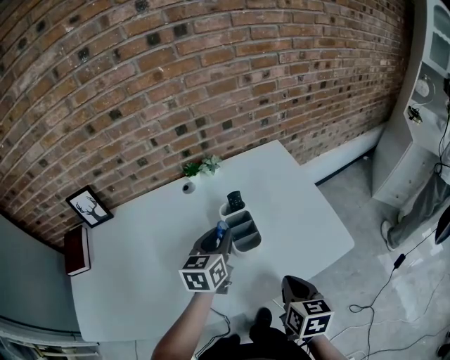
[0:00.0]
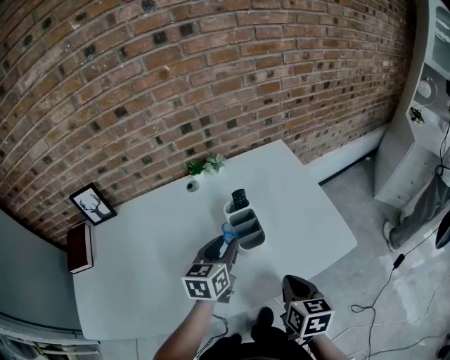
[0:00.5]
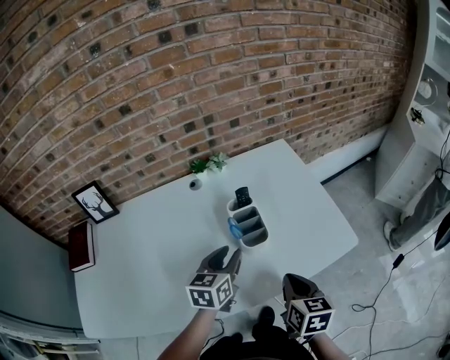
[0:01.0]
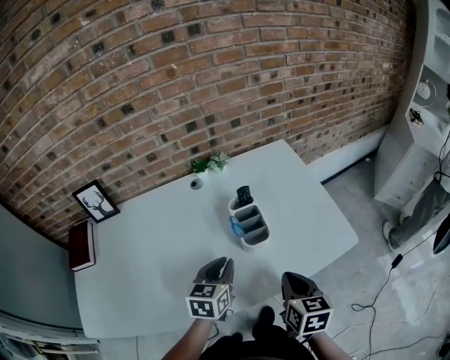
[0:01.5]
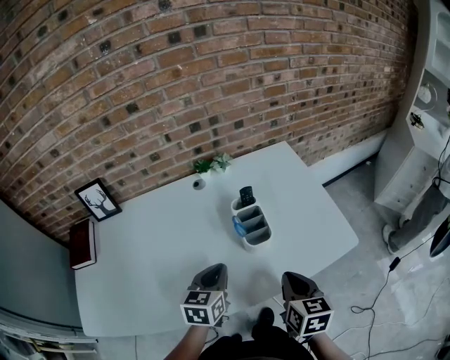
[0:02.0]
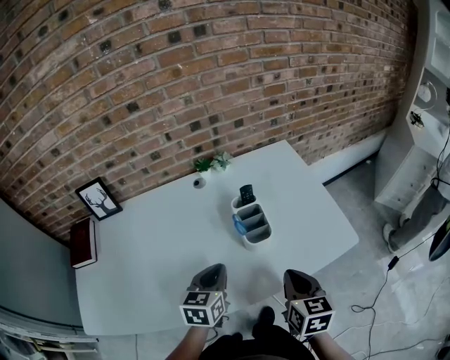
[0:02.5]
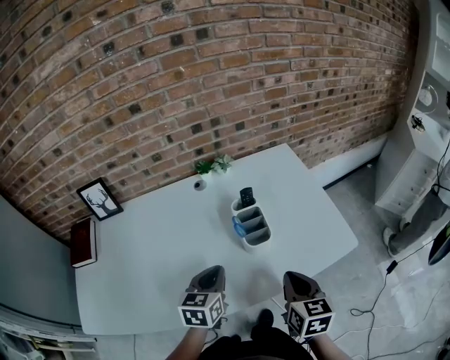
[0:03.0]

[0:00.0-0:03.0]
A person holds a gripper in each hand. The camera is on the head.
0:00.0 to 0:01.5: The left gripper travels backward by approximately 10 cm.
0:01.5 to 0:03.0: The grippers stay close to where they were, moving slightly.

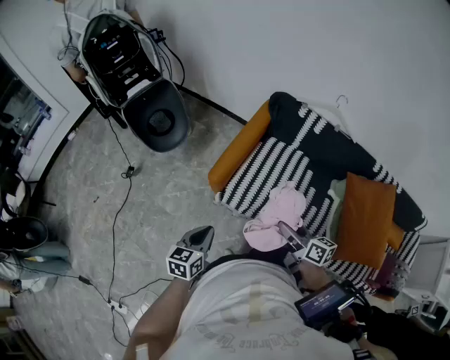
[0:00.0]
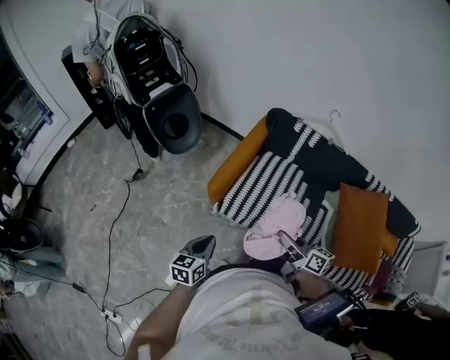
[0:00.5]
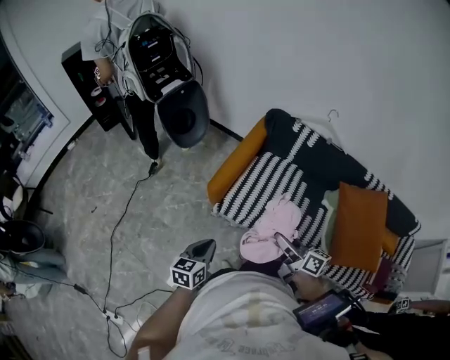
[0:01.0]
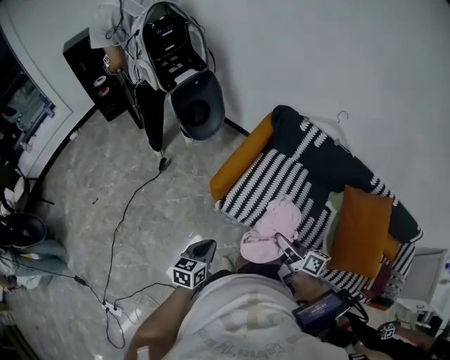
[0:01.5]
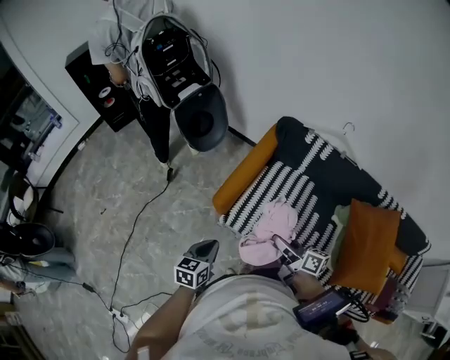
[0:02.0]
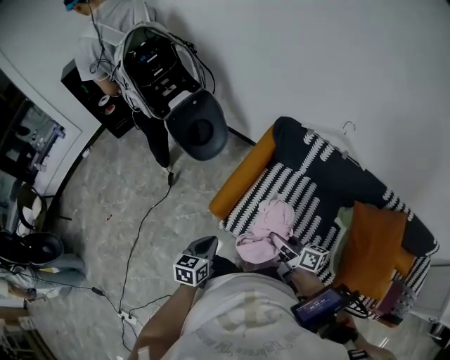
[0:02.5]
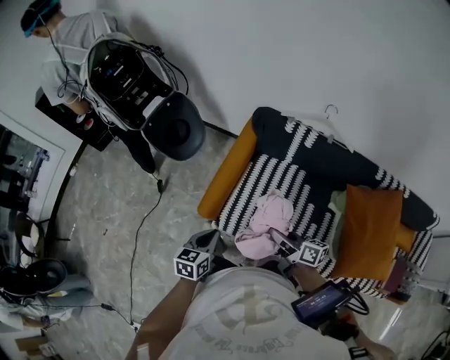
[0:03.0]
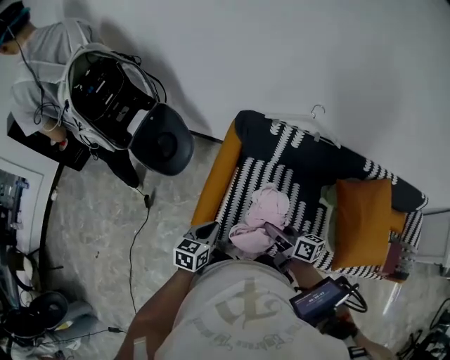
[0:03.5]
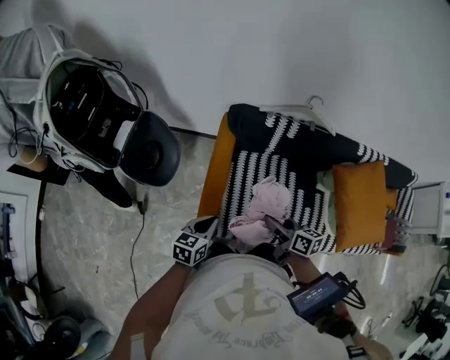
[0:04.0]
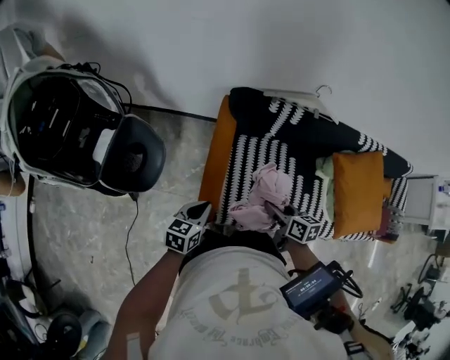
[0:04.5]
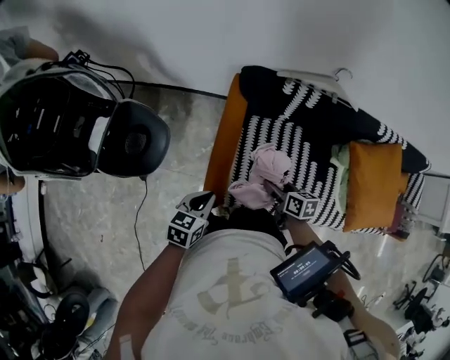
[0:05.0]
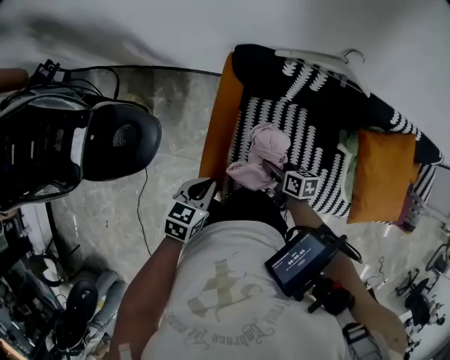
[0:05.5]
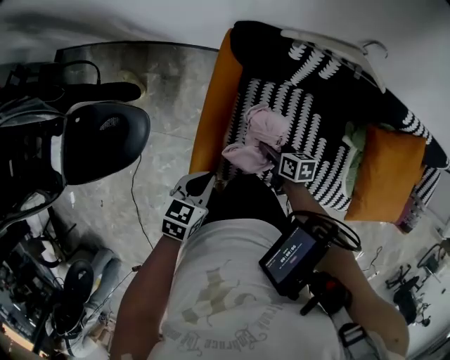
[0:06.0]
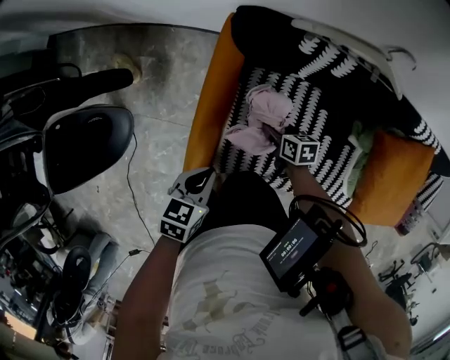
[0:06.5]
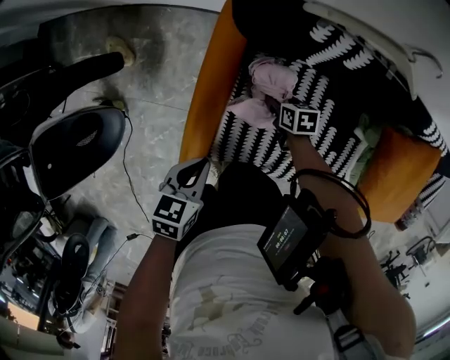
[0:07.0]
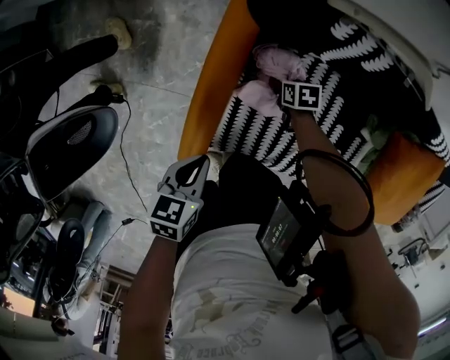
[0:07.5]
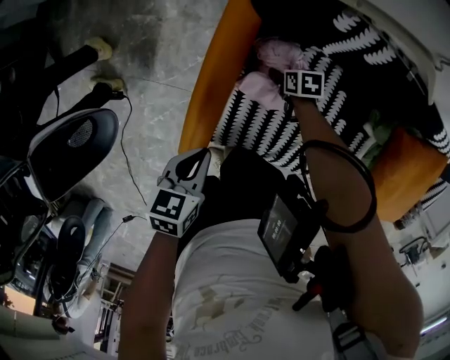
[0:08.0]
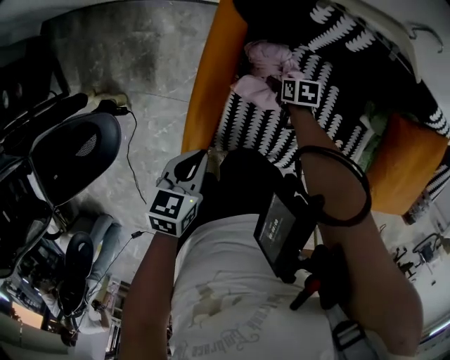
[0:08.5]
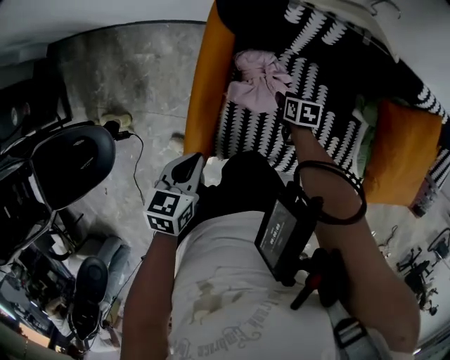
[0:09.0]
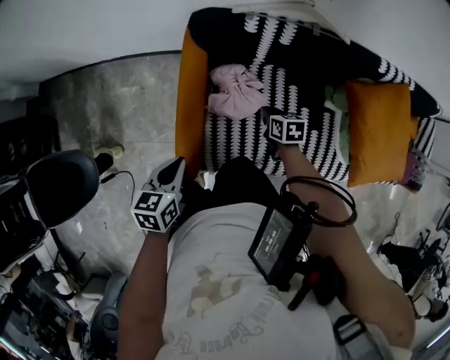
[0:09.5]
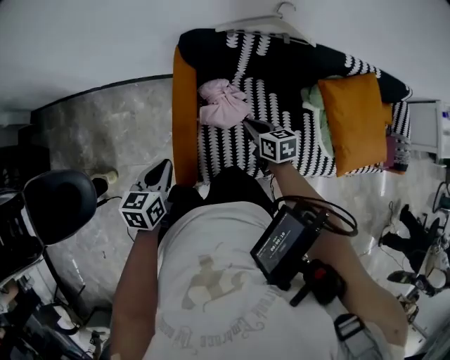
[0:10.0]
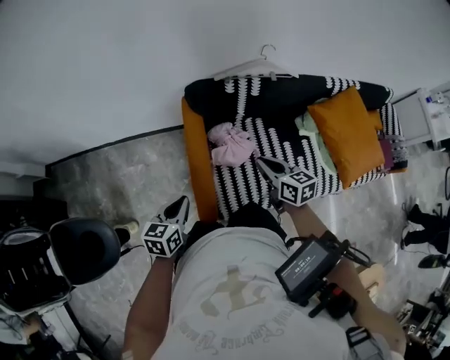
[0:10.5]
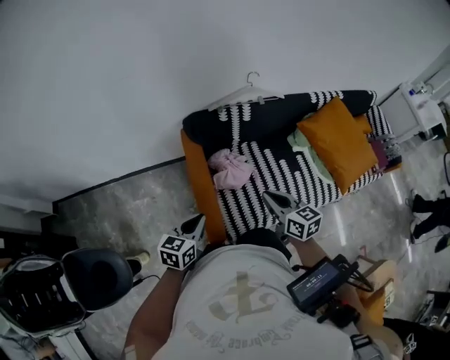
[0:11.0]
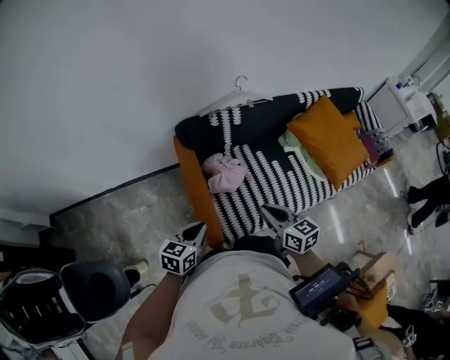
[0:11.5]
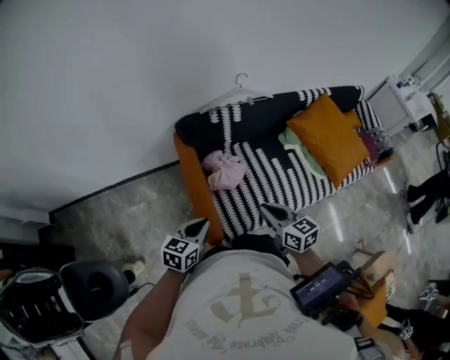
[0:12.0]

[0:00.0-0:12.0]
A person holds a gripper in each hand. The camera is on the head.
0:00.0 to 0:02.0: The right gripper goes backward and returns, roughly 10 cm each way. Meanwhile the left gripper moves some 10 cm backward and comes back.
0:02.0 to 0:04.0: The left gripper ends up roughly 25 cm from where it was, and swivels roughly 30 degrees. The right gripper ends up roughly 15 cm from where it was, and changes its angle by approximately 30 degrees.
0:04.0 to 0:06.0: The right gripper heads downward and forward, covering some 30 cm, and swivels approximately 30 degrees. Meanwhile the left gripper goes roughly 15 cm forward and downward.
0:06.0 to 0:08.0: The right gripper travels downward and forward by roughly 20 cm, and swivels about 20 degrees.
0:08.0 to 0:10.0: The right gripper shifts about 35 cm upward and backward, swivels about 40 degrees, and closes its fingers. Meanwhile the left gripper shifts approximately 10 cm upward and to the left, and changes its angle by some 20 degrees.
0:10.0 to 0:12.0: The right gripper is displaced backward and upward by approximately 20 cm, and rotates roughly 20 degrees. The left gripper changes place by roughly 5 cm, and rotates approximately 30 degrees.

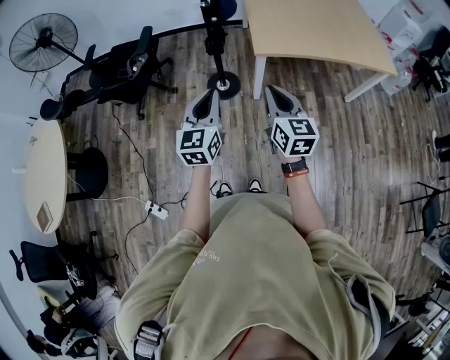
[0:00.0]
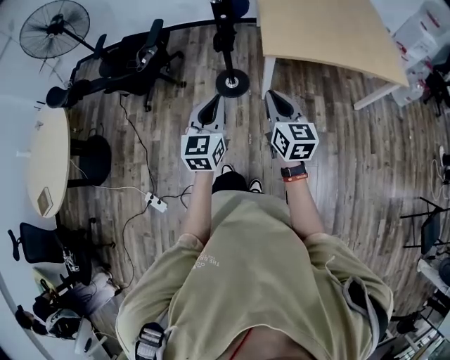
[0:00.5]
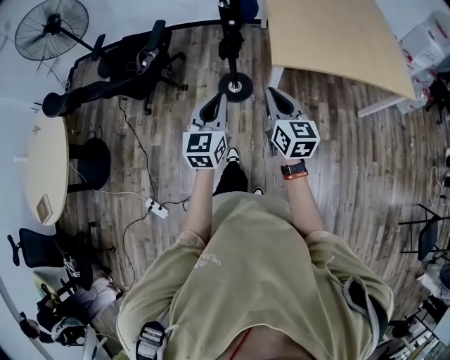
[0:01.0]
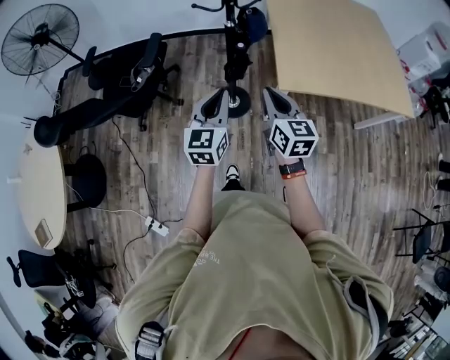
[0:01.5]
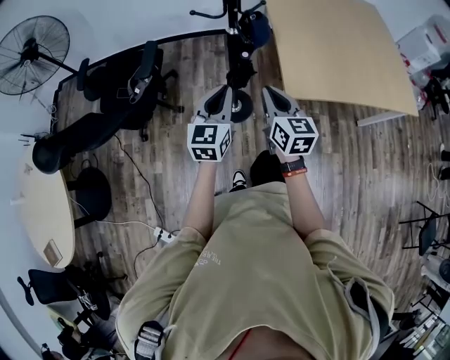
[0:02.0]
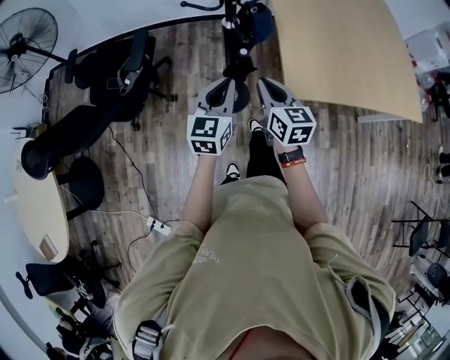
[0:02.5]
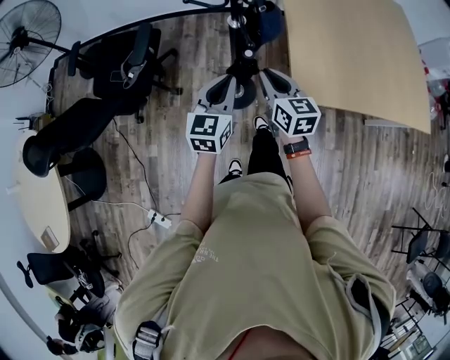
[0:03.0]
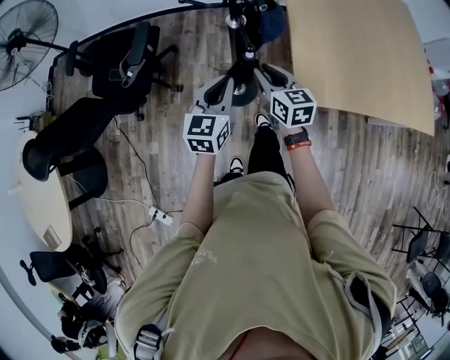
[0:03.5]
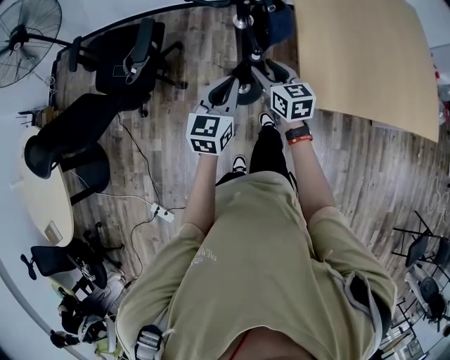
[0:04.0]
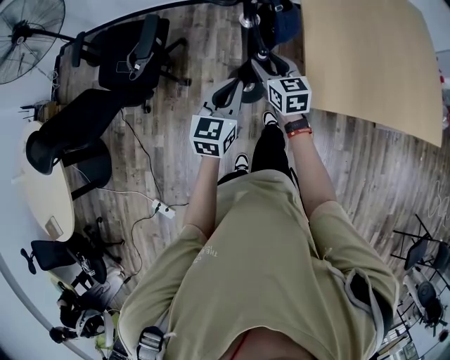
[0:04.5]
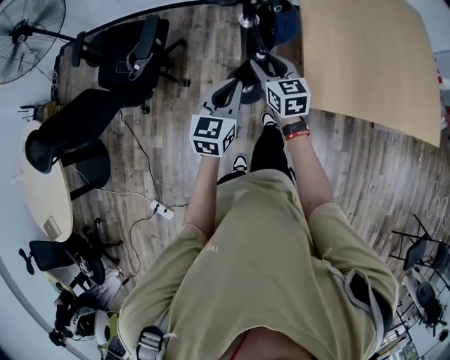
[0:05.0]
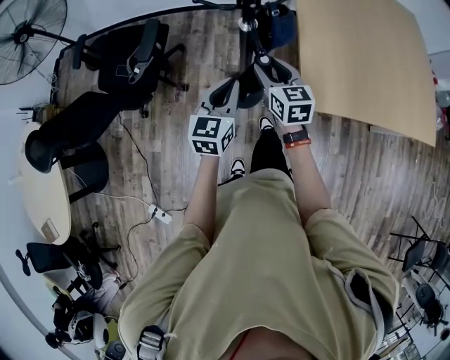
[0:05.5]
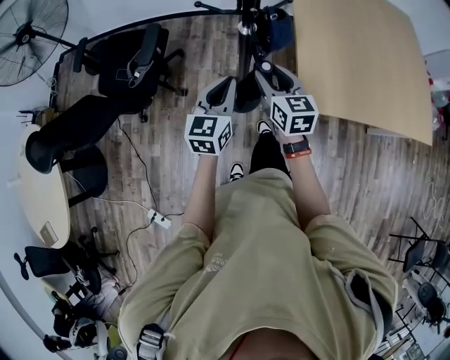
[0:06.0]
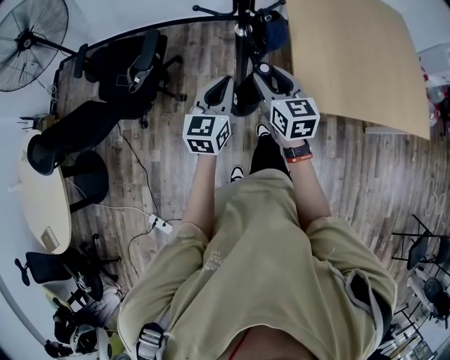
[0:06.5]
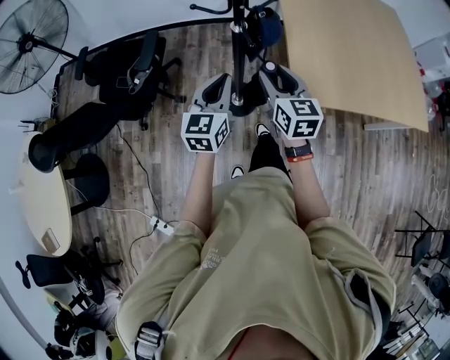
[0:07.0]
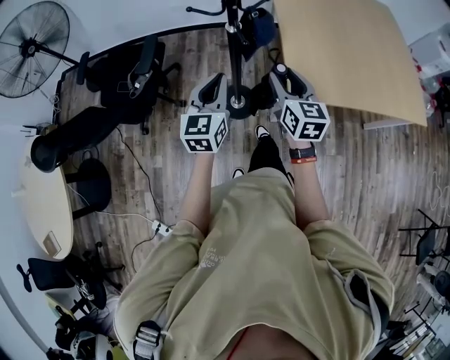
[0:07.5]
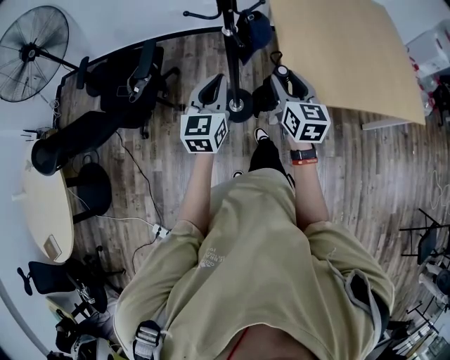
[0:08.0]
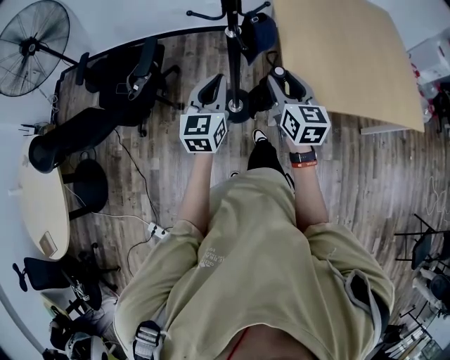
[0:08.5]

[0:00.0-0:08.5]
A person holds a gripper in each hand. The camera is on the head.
0:00.0 to 0:02.0: The grippers both shift forward by some 35 cm.
0:02.0 to 0:04.0: Both grippers travel together forward and downward, about 20 cm. The right gripper opens.
0:04.0 to 0:06.5: The right gripper travels upward and backward by roughly 15 cm. The left gripper goes approximately 5 cm upward.
0:06.5 to 0:08.5: The right gripper goes about 10 cm to the right and backward; the left gripper shifts by about 5 cm.

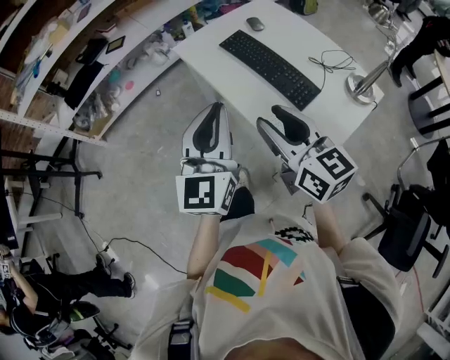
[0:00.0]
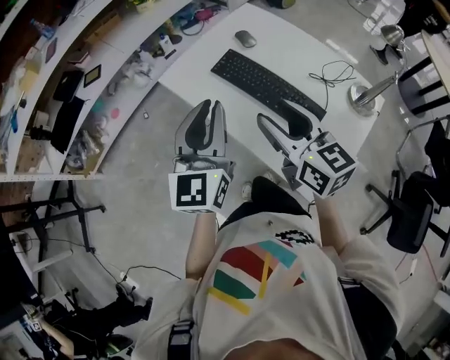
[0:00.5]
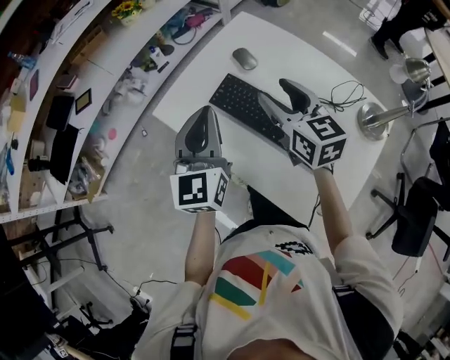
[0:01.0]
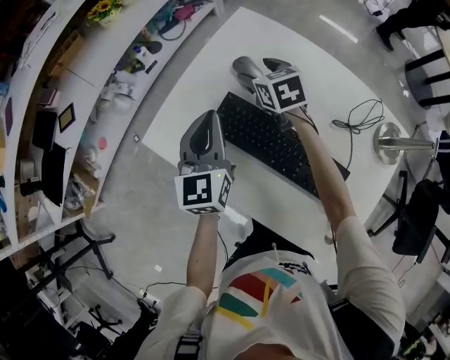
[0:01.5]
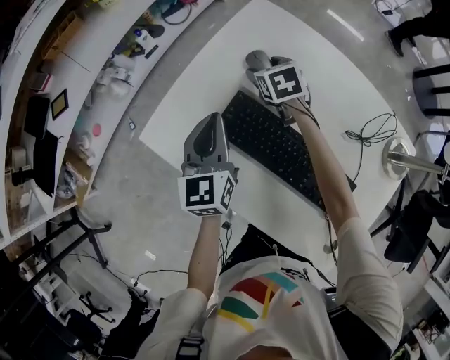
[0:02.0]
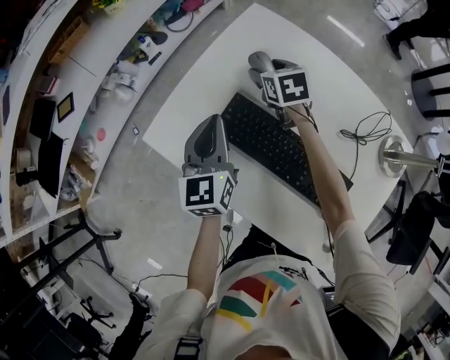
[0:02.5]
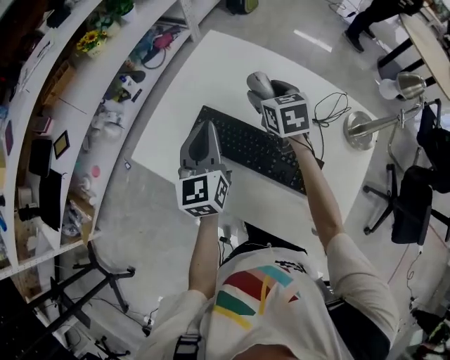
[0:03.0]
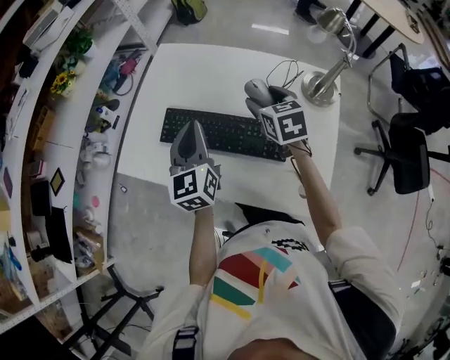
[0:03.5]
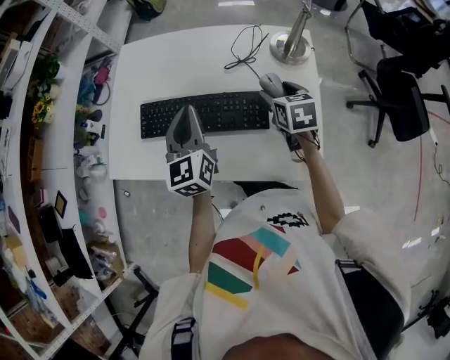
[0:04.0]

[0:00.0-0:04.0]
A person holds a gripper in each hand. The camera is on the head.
0:00.0 to 0:02.0: The pair of grippers is taken forward, some 60 cm. The grippers both shift downward by roughly 25 cm. The left gripper rotates approximately 20 degrees. The right gripper points its fingers some 50 degrees further downward, and opens its fingers.
0:02.0 to 0:04.0: The right gripper shifts by roughly 50 cm, and changes its angle by approximately 40 degrees. Meanwhile the left gripper moves roughly 25 cm, and rotates approximately 30 degrees.
